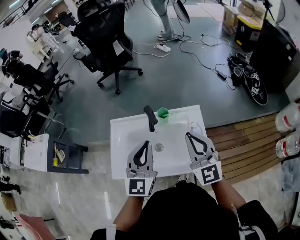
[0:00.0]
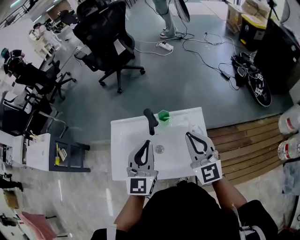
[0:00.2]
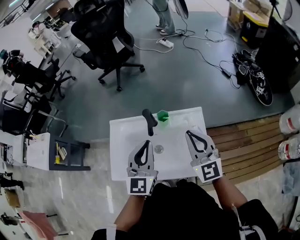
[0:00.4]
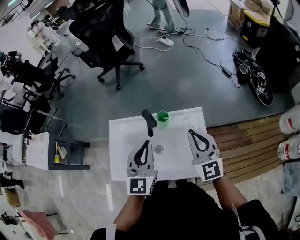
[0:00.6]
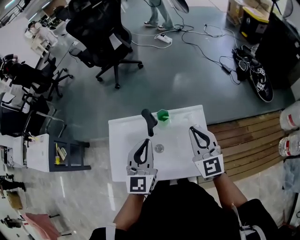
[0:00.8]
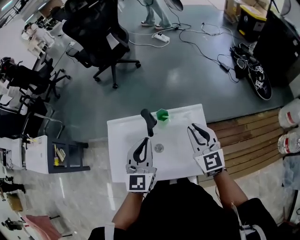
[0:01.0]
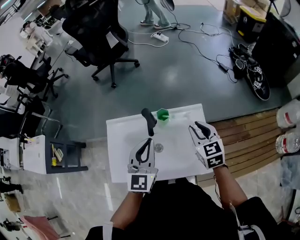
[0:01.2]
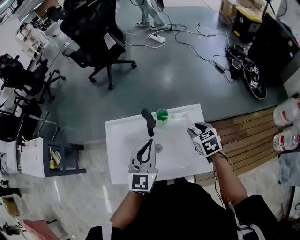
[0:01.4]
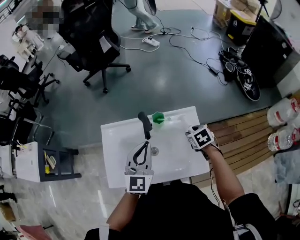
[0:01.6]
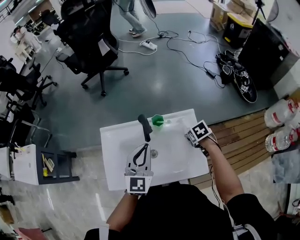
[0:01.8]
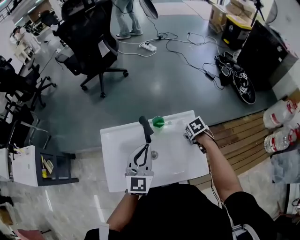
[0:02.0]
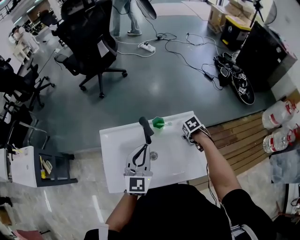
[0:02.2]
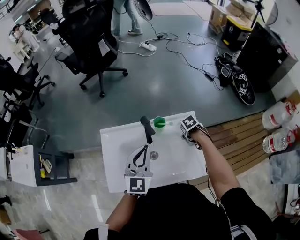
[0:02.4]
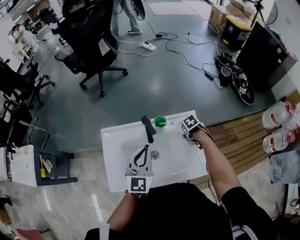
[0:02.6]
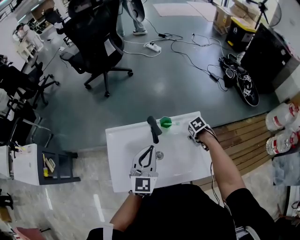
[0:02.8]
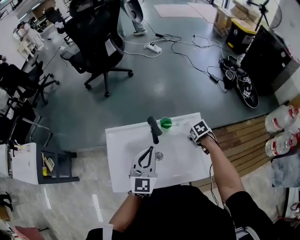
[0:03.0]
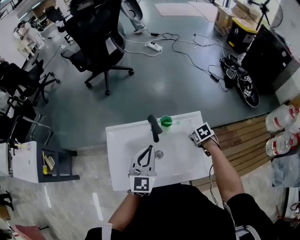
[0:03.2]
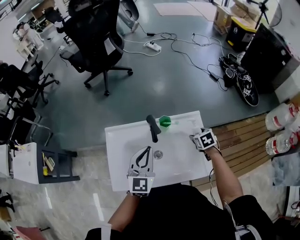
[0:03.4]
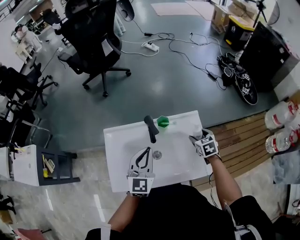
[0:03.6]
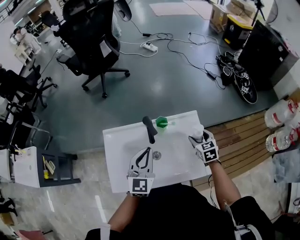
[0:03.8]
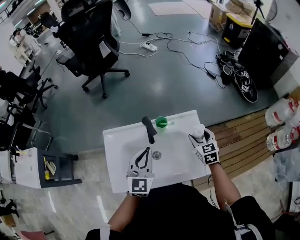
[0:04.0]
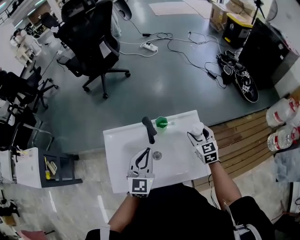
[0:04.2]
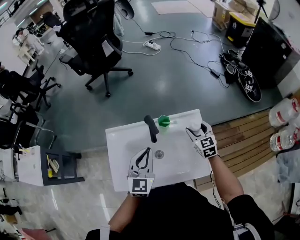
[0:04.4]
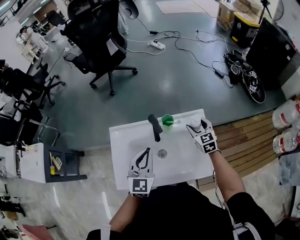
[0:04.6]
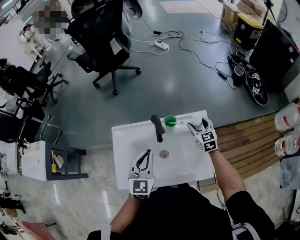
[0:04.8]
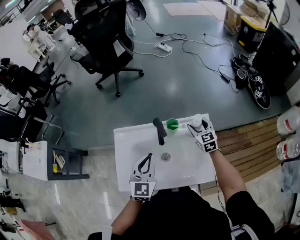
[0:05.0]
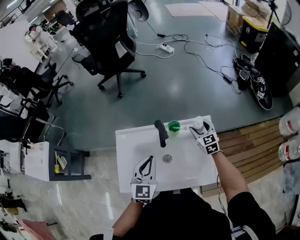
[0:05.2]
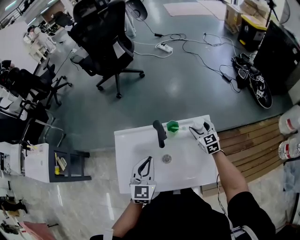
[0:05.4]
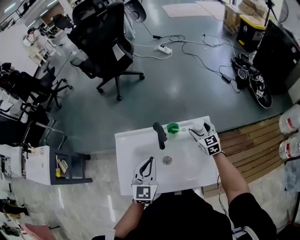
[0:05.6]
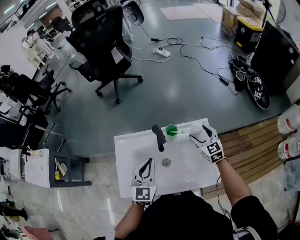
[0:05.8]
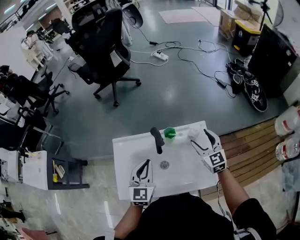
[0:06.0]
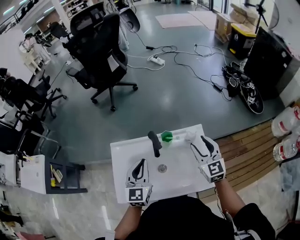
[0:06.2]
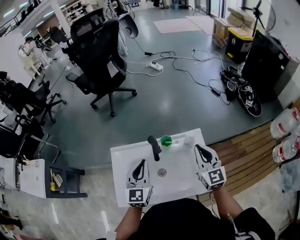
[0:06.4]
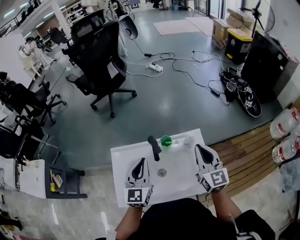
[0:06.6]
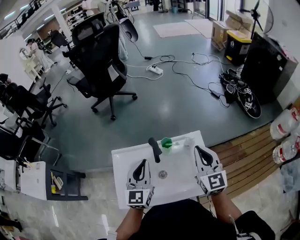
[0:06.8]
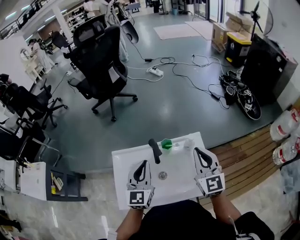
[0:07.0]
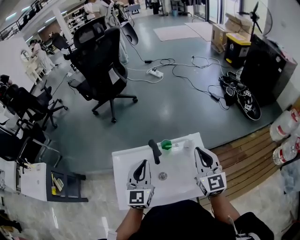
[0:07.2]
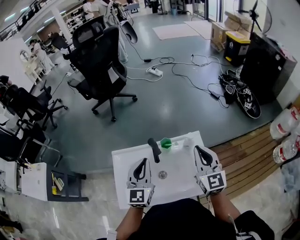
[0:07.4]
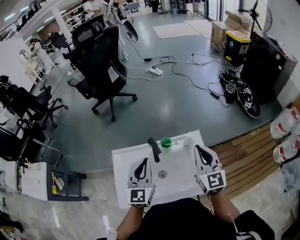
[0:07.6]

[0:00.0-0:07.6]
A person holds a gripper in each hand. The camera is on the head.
0:00.0 to 0:01.6: The right gripper is displaced downward and forward by some 30 cm, tips its fingers downward by roughly 70 degrees, and opens. Meanwhile the left gripper shifts approximately 10 cm forward and downward.
0:01.6 to 0:03.0: The right gripper heads downward, covering approximately 10 cm, and opens its fingers.
0:03.0 to 0:04.6: The right gripper goes some 10 cm upward, and angles its fingers upward, by roughly 50 degrees.
0:04.6 to 0:06.0: The right gripper goes some 5 cm upward.
0:06.0 to 0:07.6: The left gripper moves upward, roughly 10 cm. The right gripper travels upward and backward by approximately 15 cm, and closes its fingers.

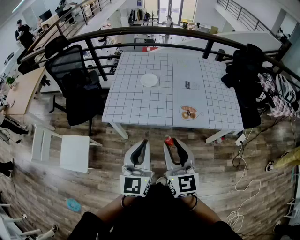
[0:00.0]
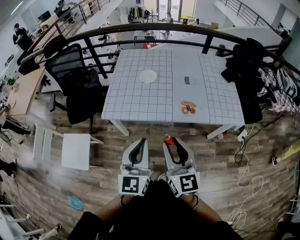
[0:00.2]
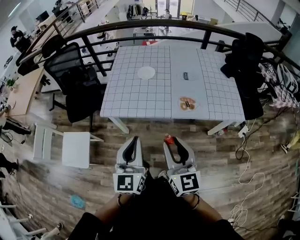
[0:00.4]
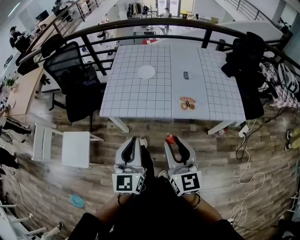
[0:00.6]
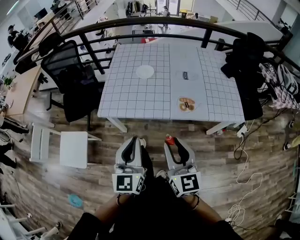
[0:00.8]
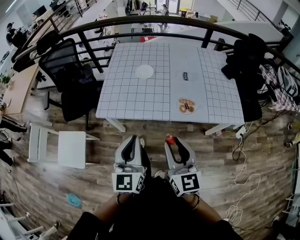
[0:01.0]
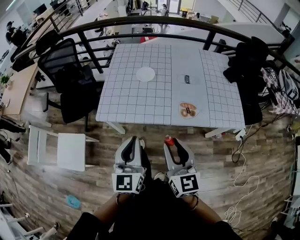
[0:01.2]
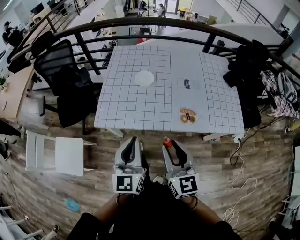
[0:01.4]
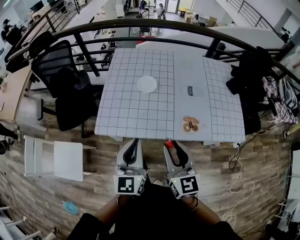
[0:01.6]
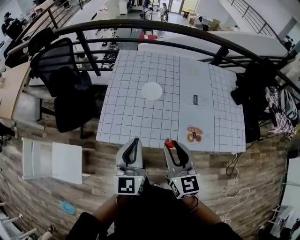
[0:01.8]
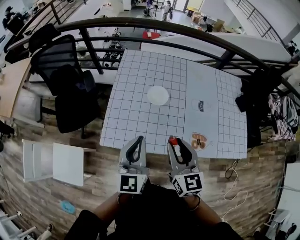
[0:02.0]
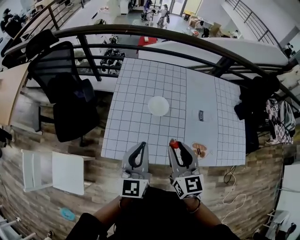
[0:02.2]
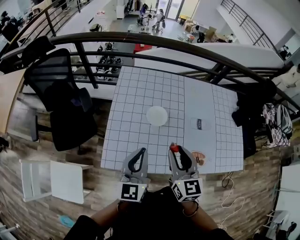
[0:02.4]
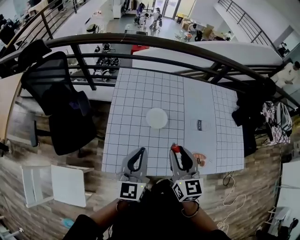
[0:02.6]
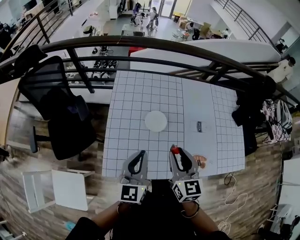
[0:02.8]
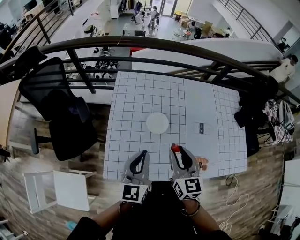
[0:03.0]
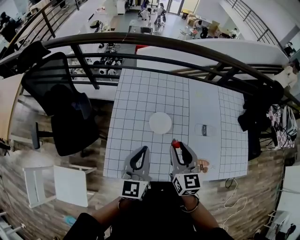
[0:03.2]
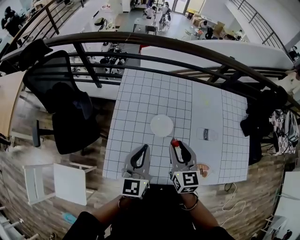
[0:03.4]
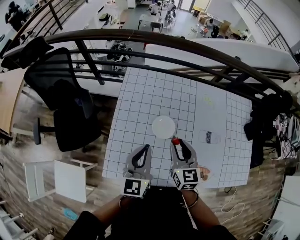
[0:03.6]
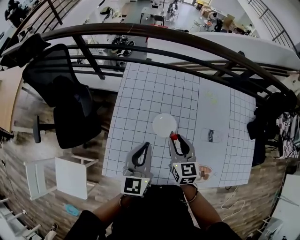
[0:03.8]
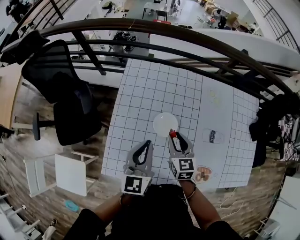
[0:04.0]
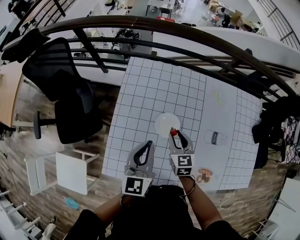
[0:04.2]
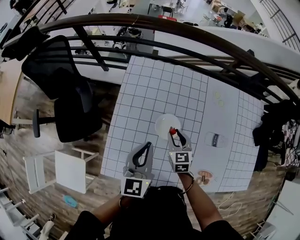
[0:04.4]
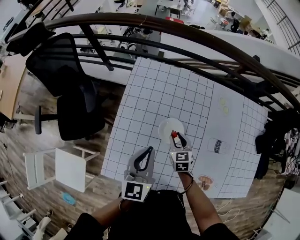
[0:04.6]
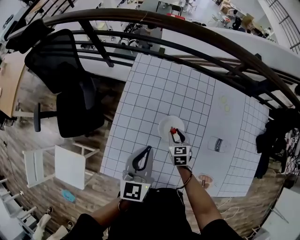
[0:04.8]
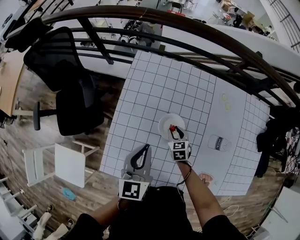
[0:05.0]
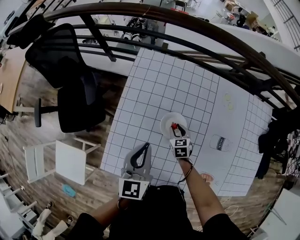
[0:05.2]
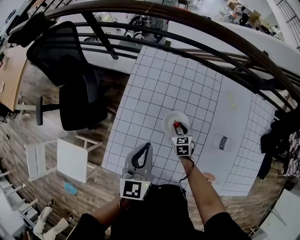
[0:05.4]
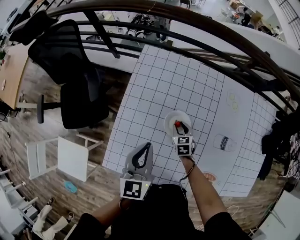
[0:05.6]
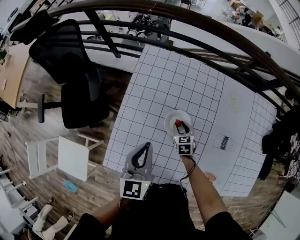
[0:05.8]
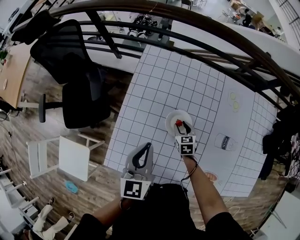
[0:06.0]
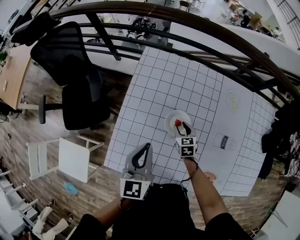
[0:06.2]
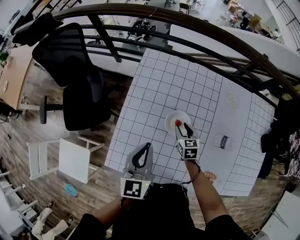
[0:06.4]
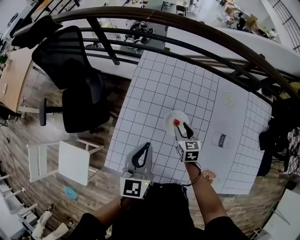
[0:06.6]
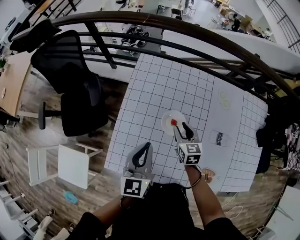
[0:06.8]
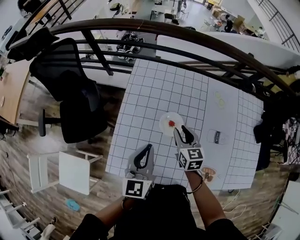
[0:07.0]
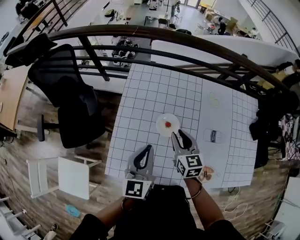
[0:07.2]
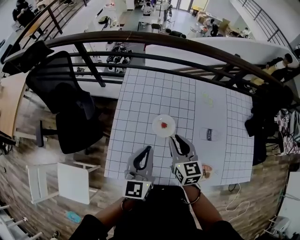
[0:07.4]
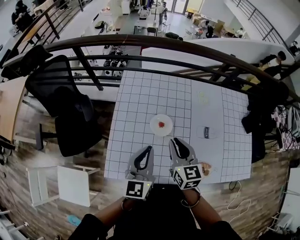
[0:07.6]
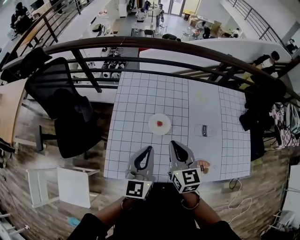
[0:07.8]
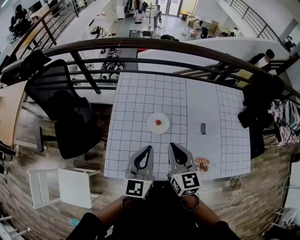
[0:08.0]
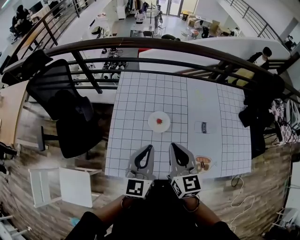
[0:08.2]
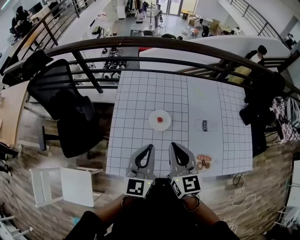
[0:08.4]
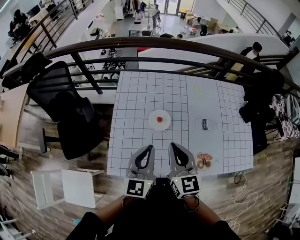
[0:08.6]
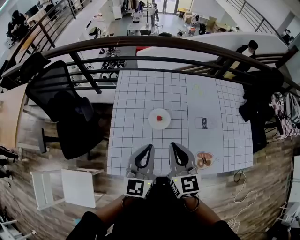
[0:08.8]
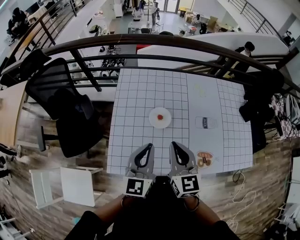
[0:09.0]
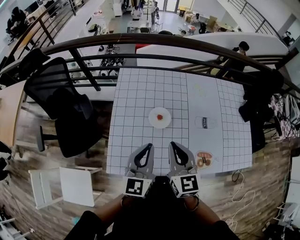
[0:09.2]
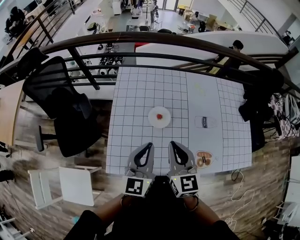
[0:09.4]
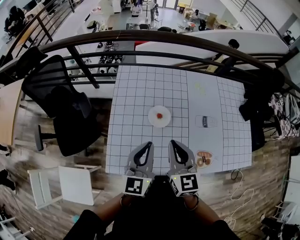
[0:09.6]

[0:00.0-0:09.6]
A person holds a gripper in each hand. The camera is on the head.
0:00.0 to 0:01.6: Both grippers travel together forward, about 15 cm.
0:01.6 to 0:03.2: Both grippers travel together forward, about 30 cm.
0:03.2 to 0:04.8: The right gripper moves downward and forward, approximately 30 cm, and turns by approximately 30 degrees; the left gripper heads forward and downward, covering some 10 cm.
0:04.8 to 0:06.4: There are only small adjustments of the grippers.
0:06.4 to 0:08.0: The left gripper goes about 15 cm backward, upward and to the right. The right gripper moves upward and backward, some 35 cm, turns by roughly 30 degrees, and closes its fingers.
0:08.0 to 0:09.6: The grippers stay close to where they were, moving slightly.

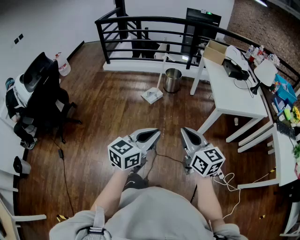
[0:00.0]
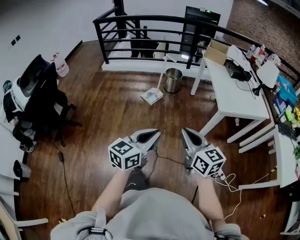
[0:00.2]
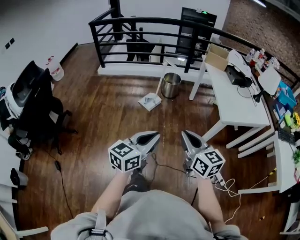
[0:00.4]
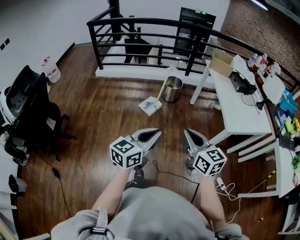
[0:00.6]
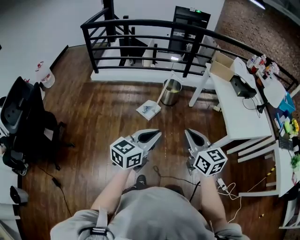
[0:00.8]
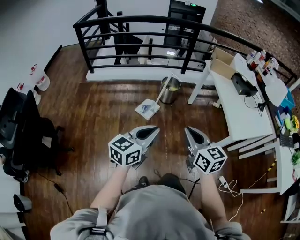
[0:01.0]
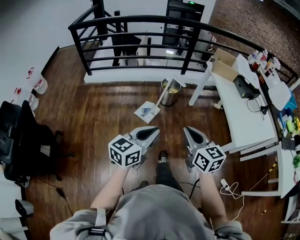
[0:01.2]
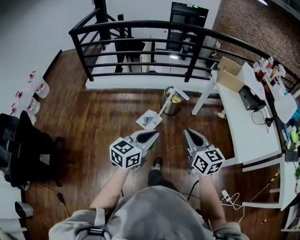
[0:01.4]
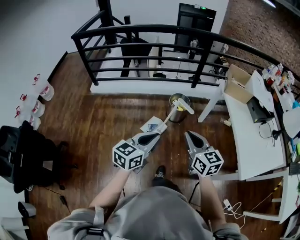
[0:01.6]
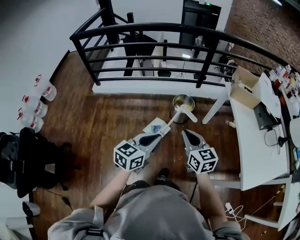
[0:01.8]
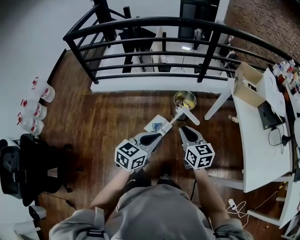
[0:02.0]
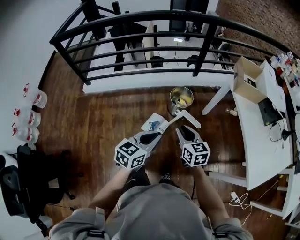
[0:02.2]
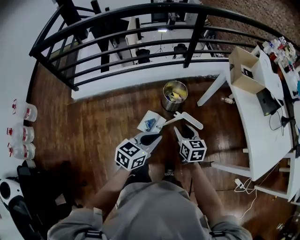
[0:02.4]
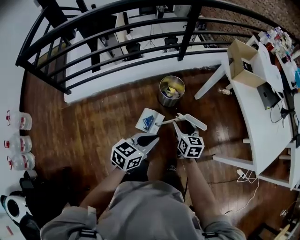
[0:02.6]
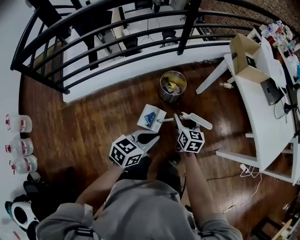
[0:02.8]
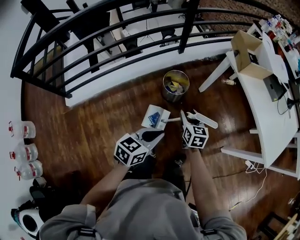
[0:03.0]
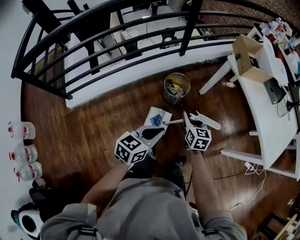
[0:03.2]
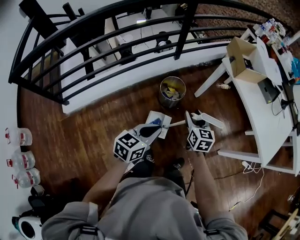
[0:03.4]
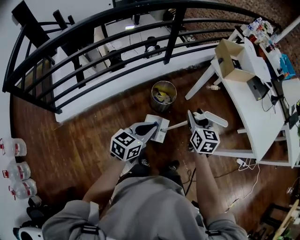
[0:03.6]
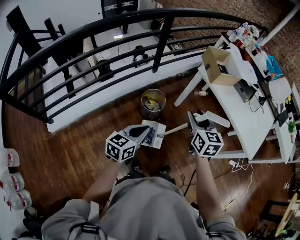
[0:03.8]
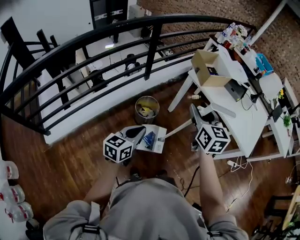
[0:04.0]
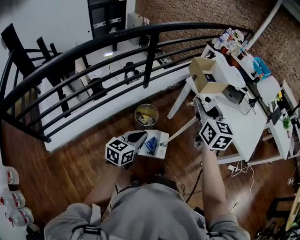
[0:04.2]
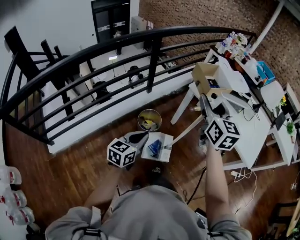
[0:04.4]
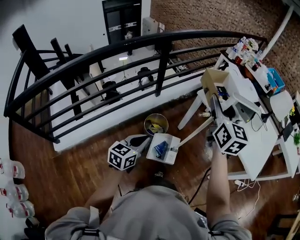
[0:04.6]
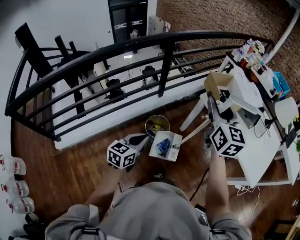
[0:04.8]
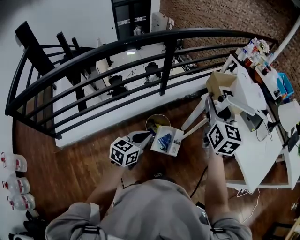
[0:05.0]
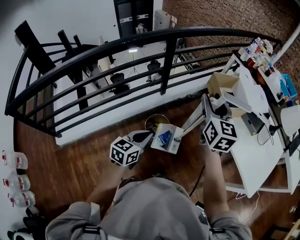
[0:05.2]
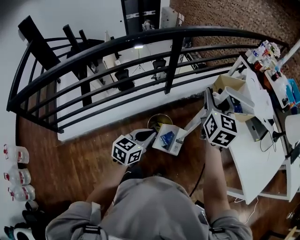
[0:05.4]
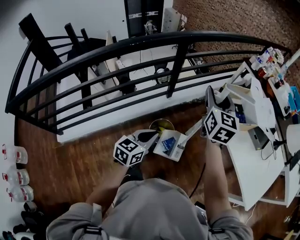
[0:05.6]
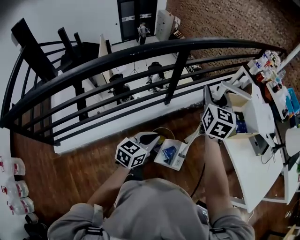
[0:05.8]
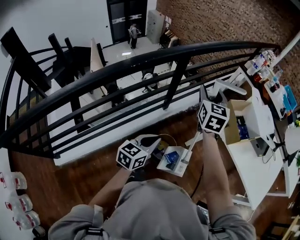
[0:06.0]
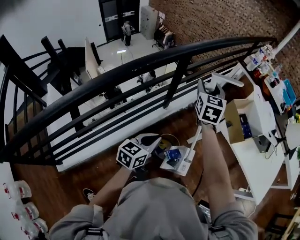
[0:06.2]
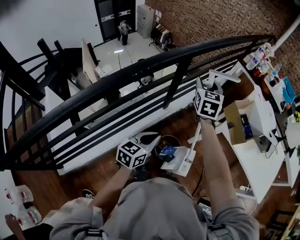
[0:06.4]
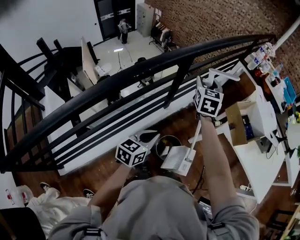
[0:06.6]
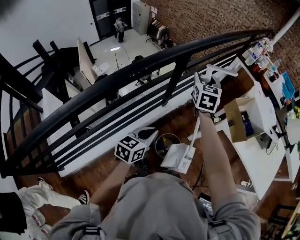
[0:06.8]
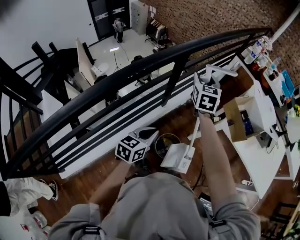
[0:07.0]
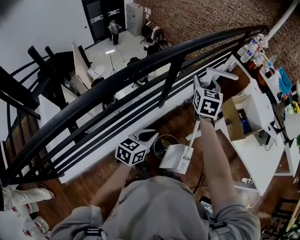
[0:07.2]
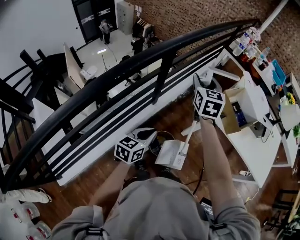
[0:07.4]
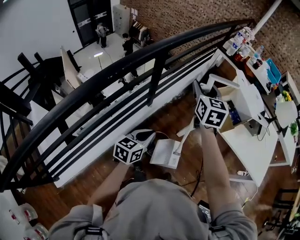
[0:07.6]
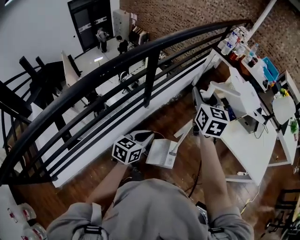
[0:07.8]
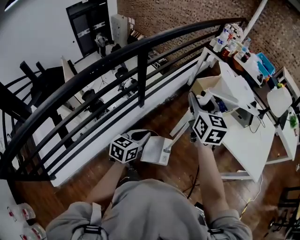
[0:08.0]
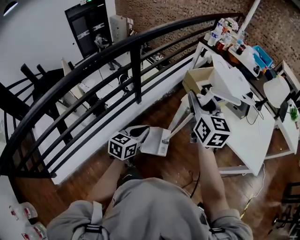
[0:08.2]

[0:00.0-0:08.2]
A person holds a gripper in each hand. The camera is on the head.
0:00.0 to 0:01.6: Both grippers are carried forward, approximately 60 cm.
0:01.6 to 0:03.2: The right gripper moves roughly 40 cm, rotates some 40 degrees, and opens its fingers. Meanwhile the left gripper changes place by some 35 cm, and changes its angle by roughly 30 degrees.
0:03.2 to 0:05.0: The left gripper goes some 20 cm forward; the right gripper heads upward and forward, covering some 40 cm, and turns by approximately 30 degrees.
0:05.0 to 0:06.6: The right gripper heads forward and to the left, covering some 40 cm, and rotates roughly 20 degrees. The left gripper moves to the left and forward, some 30 cm.
0:06.6 to 0:08.2: The left gripper travels to the right by approximately 25 cm. Meanwhile the right gripper shifts roughly 35 cm to the right and backward.
